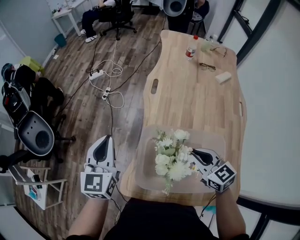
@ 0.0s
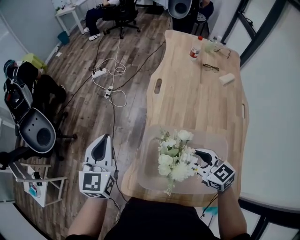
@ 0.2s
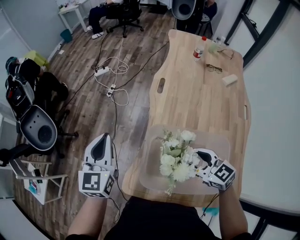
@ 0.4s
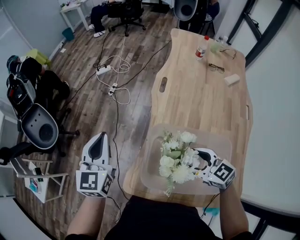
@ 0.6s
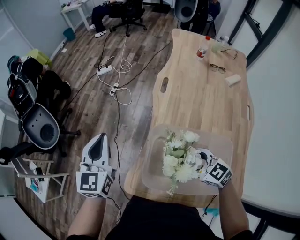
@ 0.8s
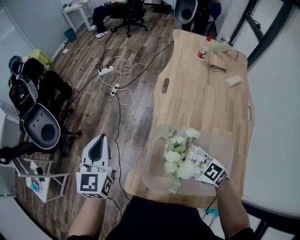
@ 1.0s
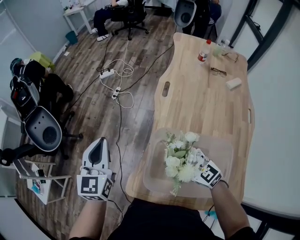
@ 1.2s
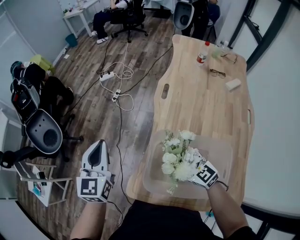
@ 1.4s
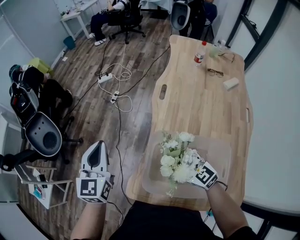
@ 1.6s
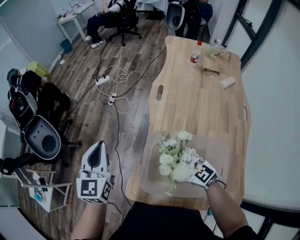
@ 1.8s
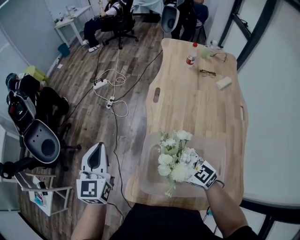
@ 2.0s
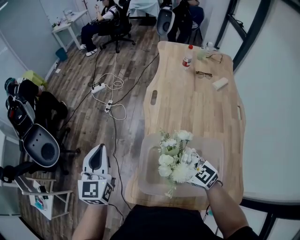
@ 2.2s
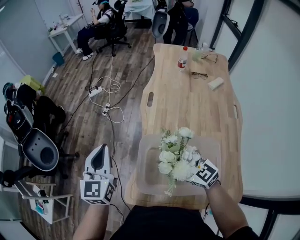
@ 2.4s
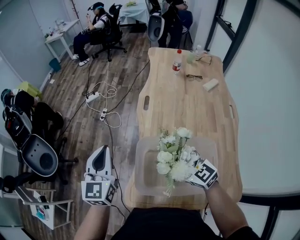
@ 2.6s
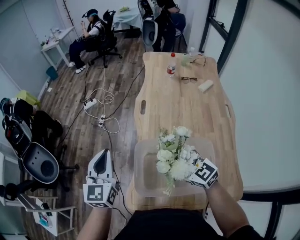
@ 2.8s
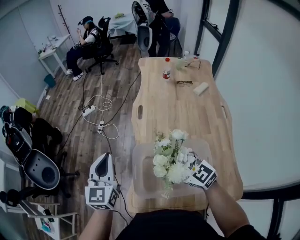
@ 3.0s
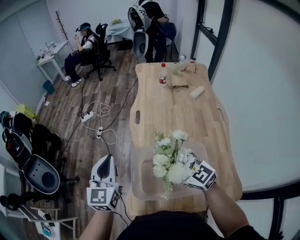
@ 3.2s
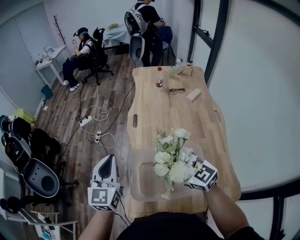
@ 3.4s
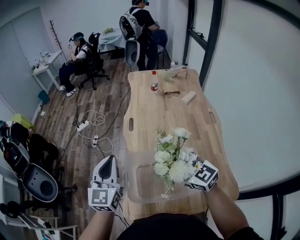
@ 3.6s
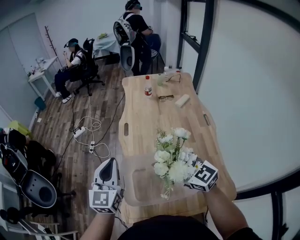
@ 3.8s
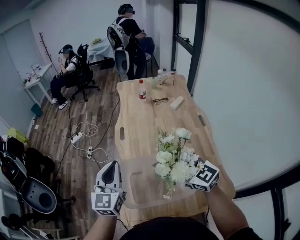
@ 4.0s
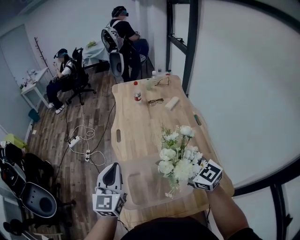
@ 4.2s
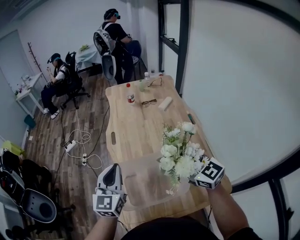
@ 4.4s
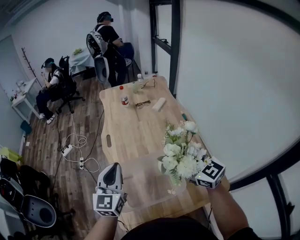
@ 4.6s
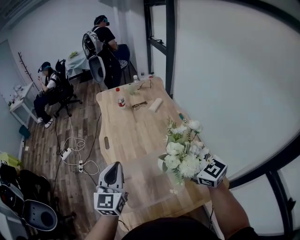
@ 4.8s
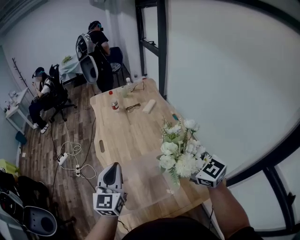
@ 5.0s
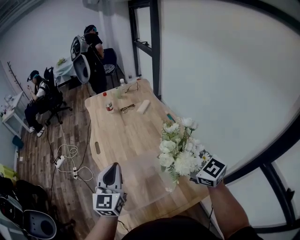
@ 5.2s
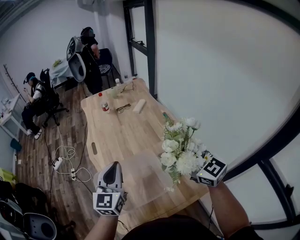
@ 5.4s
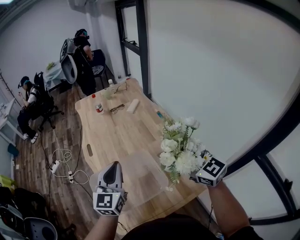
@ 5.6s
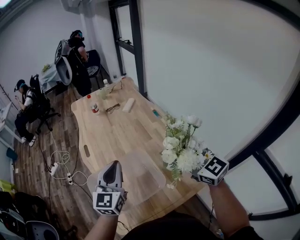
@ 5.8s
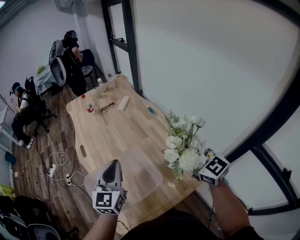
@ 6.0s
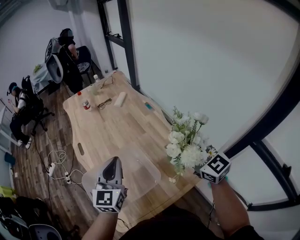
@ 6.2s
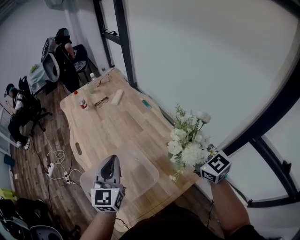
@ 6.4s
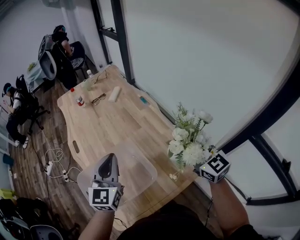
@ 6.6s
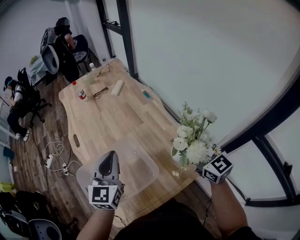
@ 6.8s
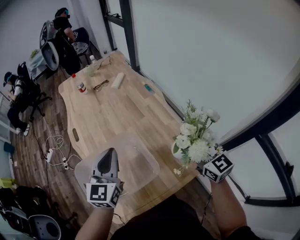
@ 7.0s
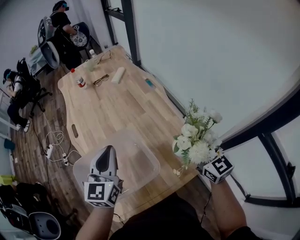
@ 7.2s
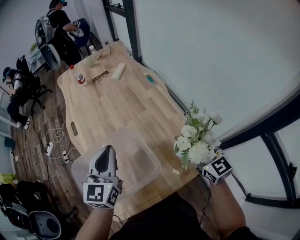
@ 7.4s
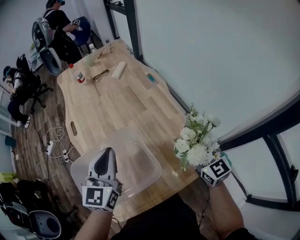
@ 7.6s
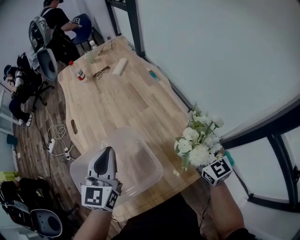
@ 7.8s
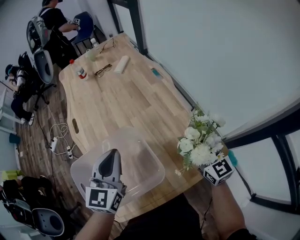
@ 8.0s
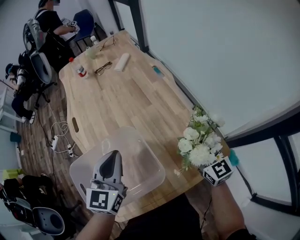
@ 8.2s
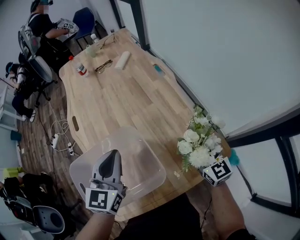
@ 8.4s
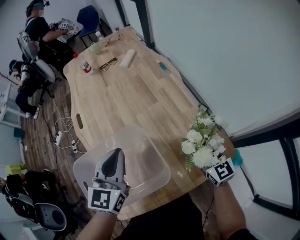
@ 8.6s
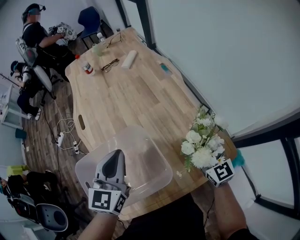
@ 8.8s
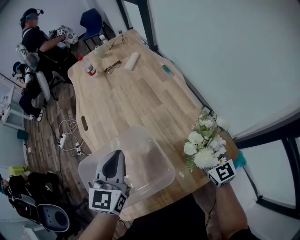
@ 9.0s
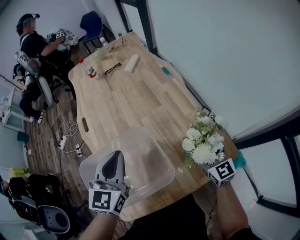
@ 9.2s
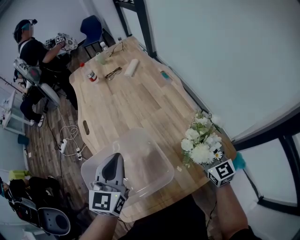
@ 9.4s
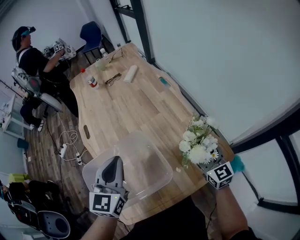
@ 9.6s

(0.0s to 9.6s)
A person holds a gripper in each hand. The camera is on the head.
0.0s - 1.6s: The right gripper travels to the left by about 10 cm, swivels some 20 degrees, and opens its fingers. Meanwhile the left gripper travels to the left by about 5 cm.
1.6s - 3.2s: The left gripper heads to the right, covering roughly 10 cm. The right gripper travels upward by some 10 cm.
3.2s - 4.8s: The right gripper goes about 20 cm to the right and upward, and changes its angle by roughly 20 degrees. Meanwhile the left gripper goes some 15 cm to the right, and swivels approximately 20 degrees.
4.8s - 6.4s: The two grippers go some 15 cm to the right. The right gripper swivels approximately 30 degrees.
6.4s - 8.0s: The right gripper shifts about 15 cm downward. Meanwhile the left gripper goes about 10 cm downward.
8.0s - 9.6s: The grippers move only a little.

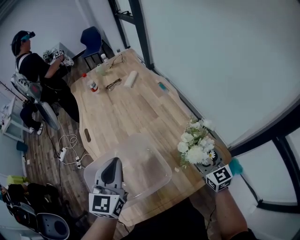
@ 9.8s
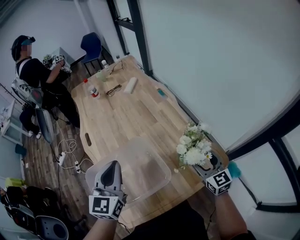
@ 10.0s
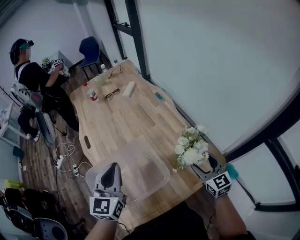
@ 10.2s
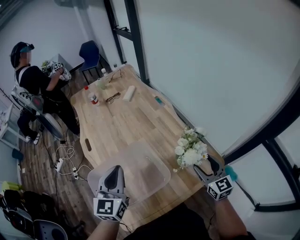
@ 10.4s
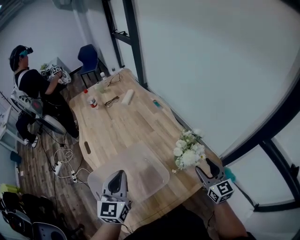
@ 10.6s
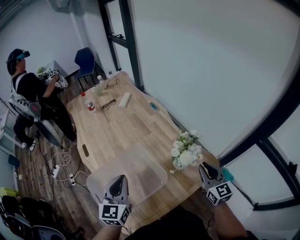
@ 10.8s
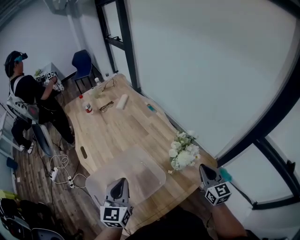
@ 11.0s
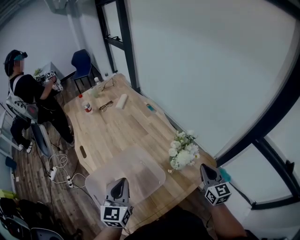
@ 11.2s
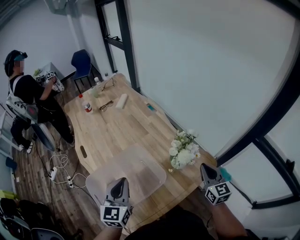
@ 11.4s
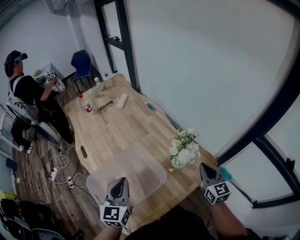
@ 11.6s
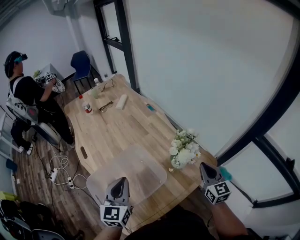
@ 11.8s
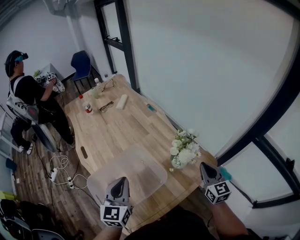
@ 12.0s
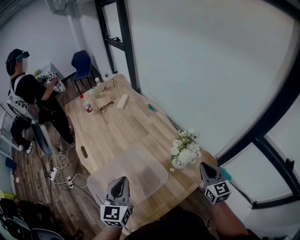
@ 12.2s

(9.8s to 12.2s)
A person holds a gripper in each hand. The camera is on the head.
9.8s - 11.0s: The right gripper goes approximately 10 cm backward and upward, and closes its fingers, while the left gripper moves backward, roughly 5 cm.
11.0s - 12.2s: Both grippers stay about where they are.

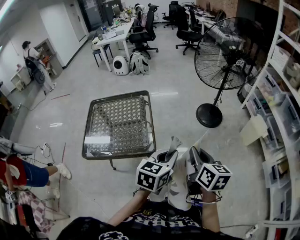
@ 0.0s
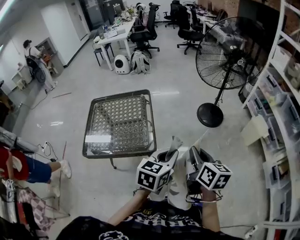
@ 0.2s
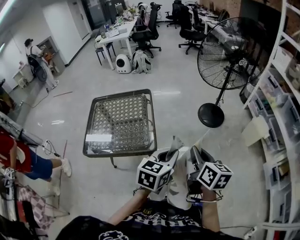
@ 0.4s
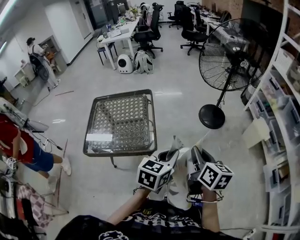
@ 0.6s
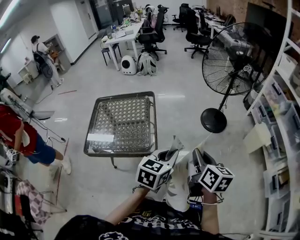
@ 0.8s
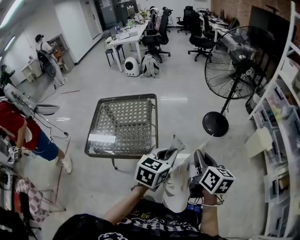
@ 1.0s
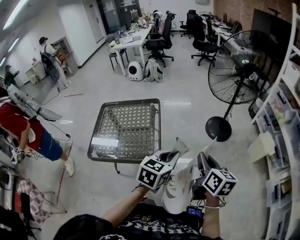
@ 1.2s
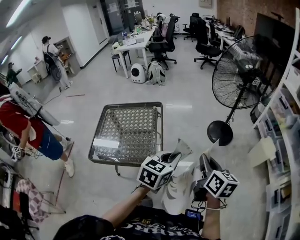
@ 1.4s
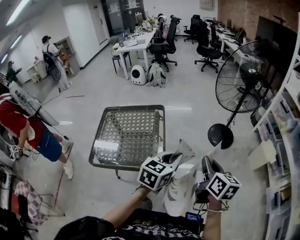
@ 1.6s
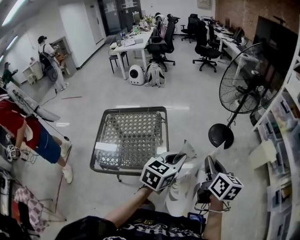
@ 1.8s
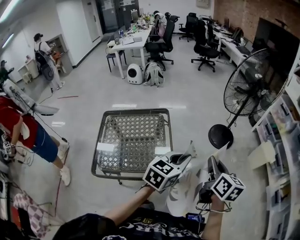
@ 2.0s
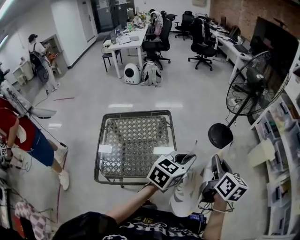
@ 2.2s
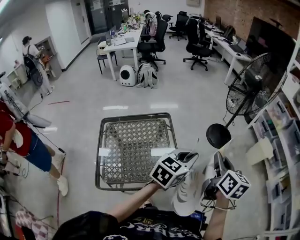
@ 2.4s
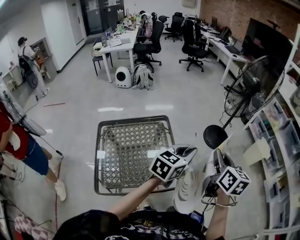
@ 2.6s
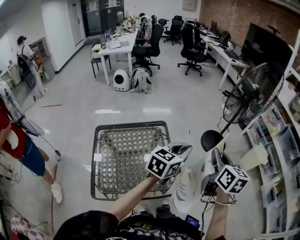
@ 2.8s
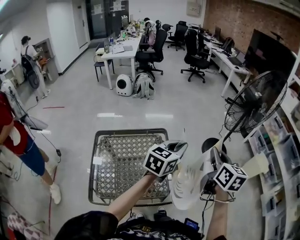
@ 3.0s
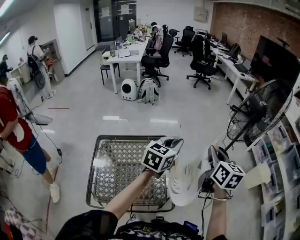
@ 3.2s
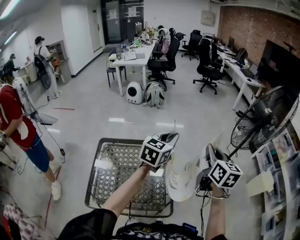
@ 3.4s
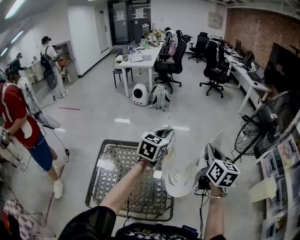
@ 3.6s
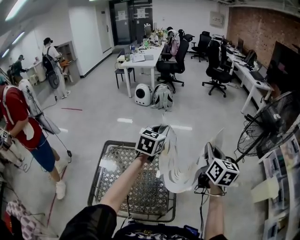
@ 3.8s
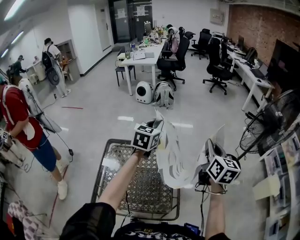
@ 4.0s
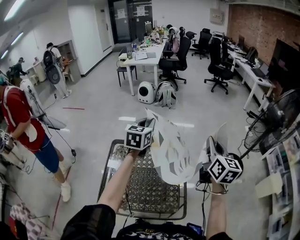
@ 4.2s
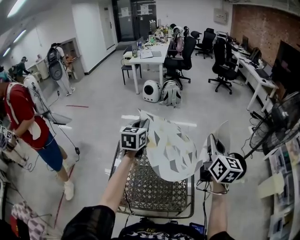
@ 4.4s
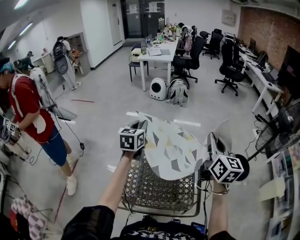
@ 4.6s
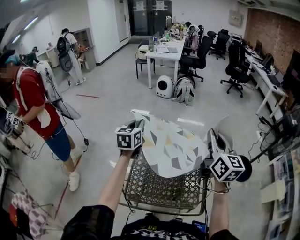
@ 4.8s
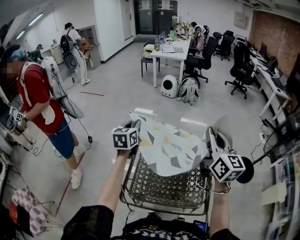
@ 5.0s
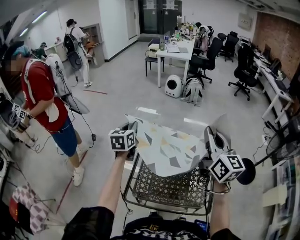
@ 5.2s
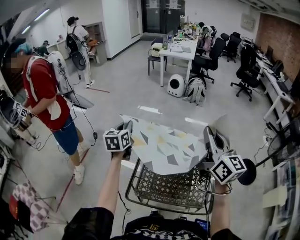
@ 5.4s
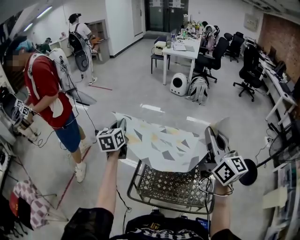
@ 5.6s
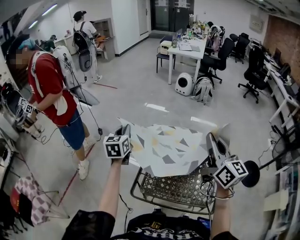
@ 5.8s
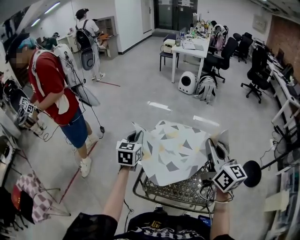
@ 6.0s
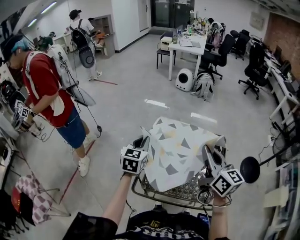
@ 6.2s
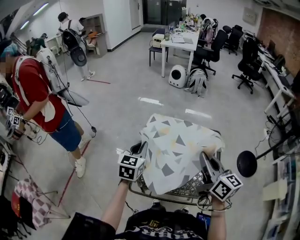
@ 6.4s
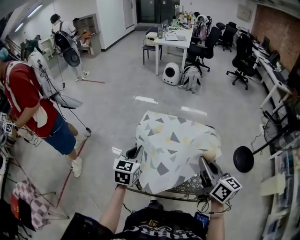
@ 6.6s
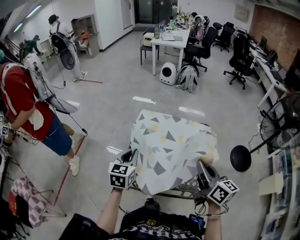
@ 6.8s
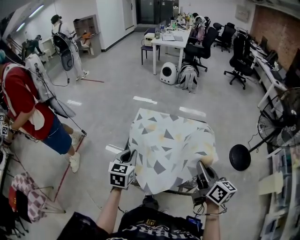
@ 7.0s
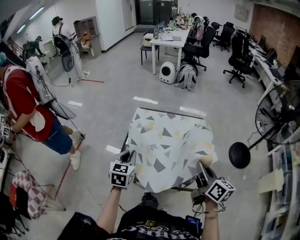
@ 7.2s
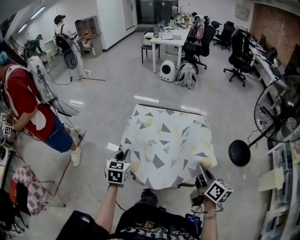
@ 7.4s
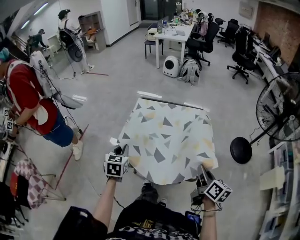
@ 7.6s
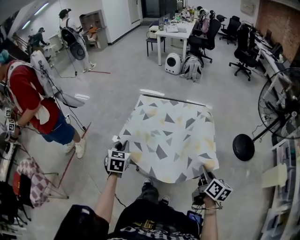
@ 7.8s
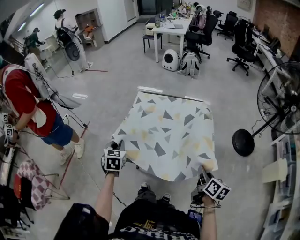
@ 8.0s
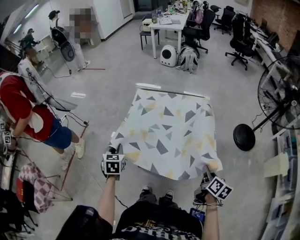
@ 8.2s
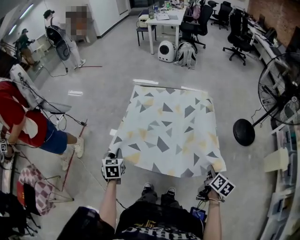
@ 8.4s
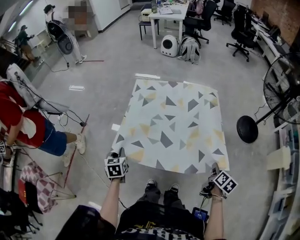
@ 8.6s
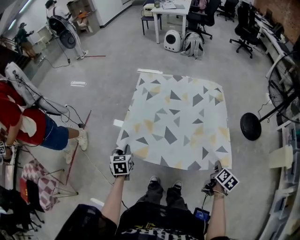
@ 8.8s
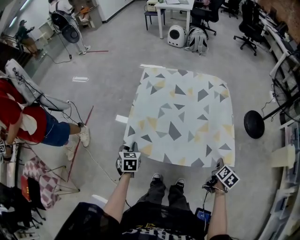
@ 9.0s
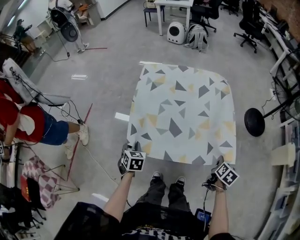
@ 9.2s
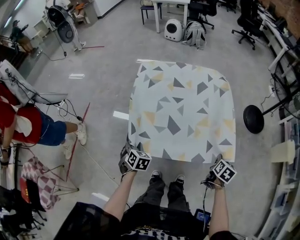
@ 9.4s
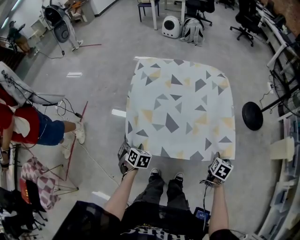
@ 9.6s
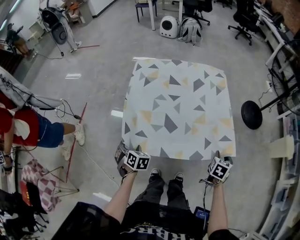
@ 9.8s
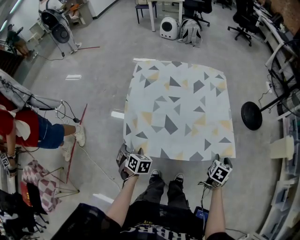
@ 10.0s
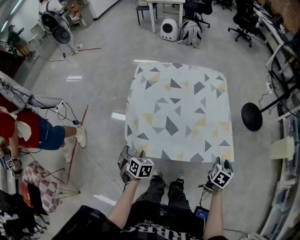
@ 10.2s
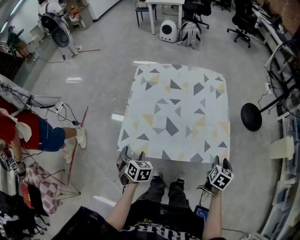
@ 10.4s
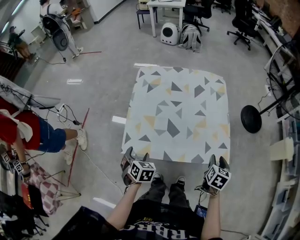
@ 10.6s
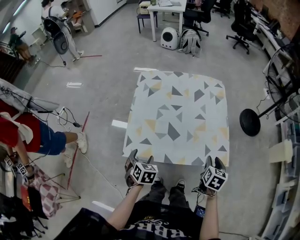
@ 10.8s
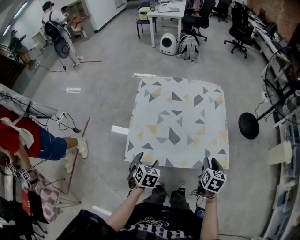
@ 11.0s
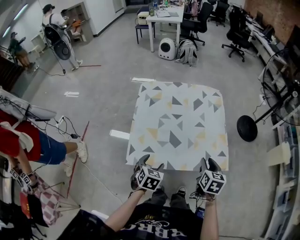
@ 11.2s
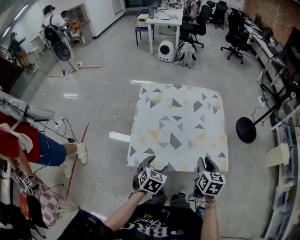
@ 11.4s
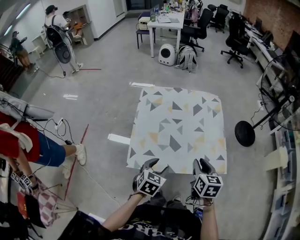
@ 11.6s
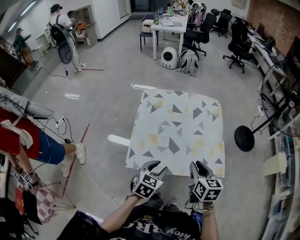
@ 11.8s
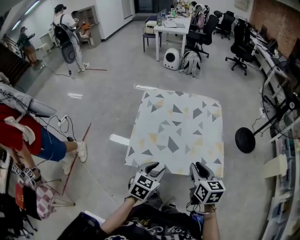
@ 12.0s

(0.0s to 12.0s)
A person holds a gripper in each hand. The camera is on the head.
0.0s - 1.6s: The two grippers go approximately 10 cm forward.
1.6s - 3.0s: Both grippers travel together to the left and forward, about 30 cm.
3.0s - 4.4s: The right gripper shifts by some 20 cm. Meanwhile the left gripper moves approximately 35 cm, and changes its angle by some 40 degrees.
4.4s - 6.0s: The right gripper moves about 30 cm, and swivels roughly 30 degrees. The left gripper ends up approximately 35 cm from where it was.
6.0s - 7.6s: The right gripper moves backward, downward and to the right, some 40 cm, and turns by about 40 degrees. Meanwhile the left gripper travels backward by some 25 cm.
7.6s - 9.0s: The two grippers go some 20 cm downward. The right gripper turns by approximately 40 degrees.
9.0s - 10.4s: The right gripper changes its angle by about 20 degrees, and opens up. The left gripper changes its angle by roughly 20 degrees, and opens its fingers.
10.4s - 12.0s: The right gripper shifts some 25 cm to the left and upward, turns by about 40 degrees, and closes; the left gripper moves upward and to the right, about 20 cm, turns by about 40 degrees, and closes its fingers.
